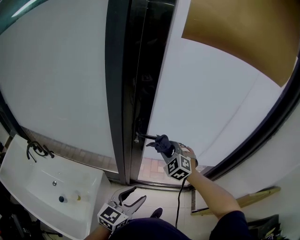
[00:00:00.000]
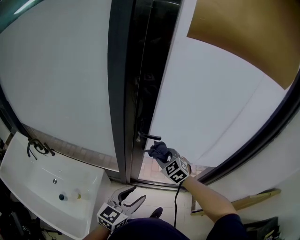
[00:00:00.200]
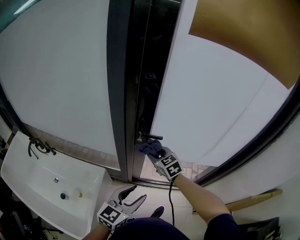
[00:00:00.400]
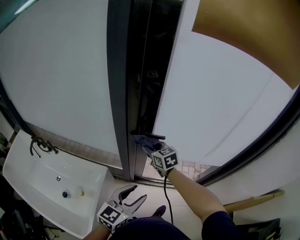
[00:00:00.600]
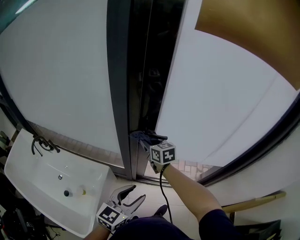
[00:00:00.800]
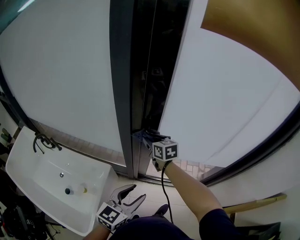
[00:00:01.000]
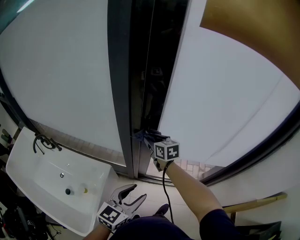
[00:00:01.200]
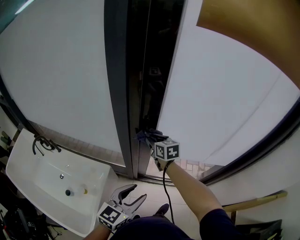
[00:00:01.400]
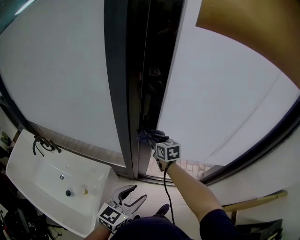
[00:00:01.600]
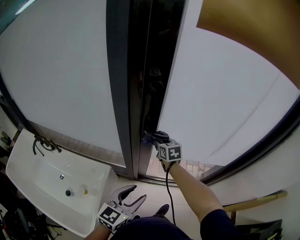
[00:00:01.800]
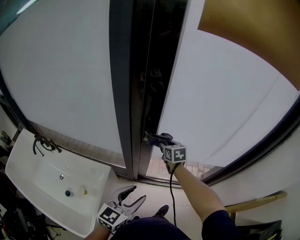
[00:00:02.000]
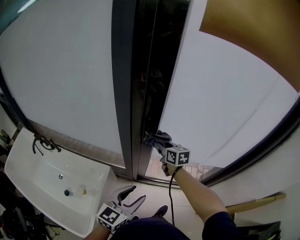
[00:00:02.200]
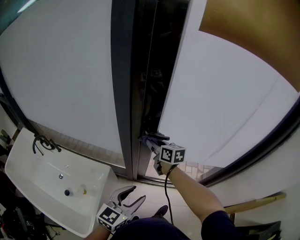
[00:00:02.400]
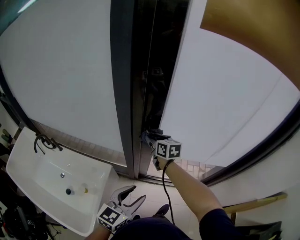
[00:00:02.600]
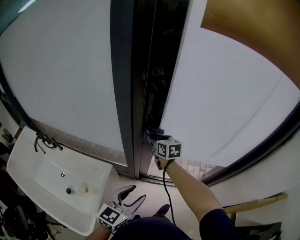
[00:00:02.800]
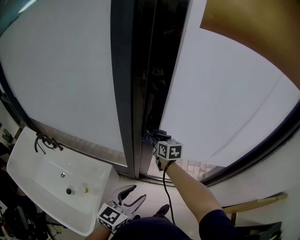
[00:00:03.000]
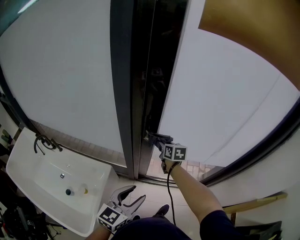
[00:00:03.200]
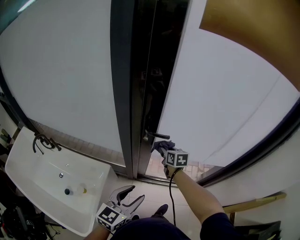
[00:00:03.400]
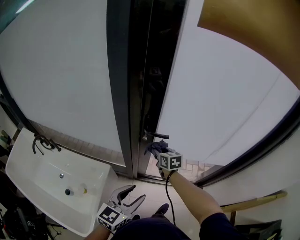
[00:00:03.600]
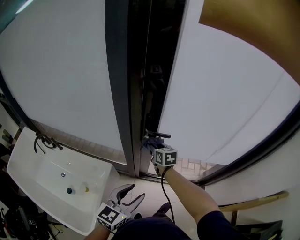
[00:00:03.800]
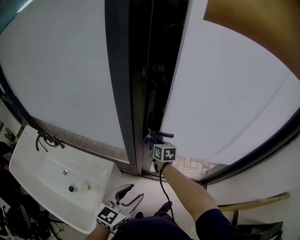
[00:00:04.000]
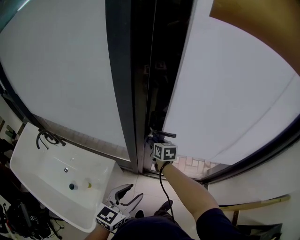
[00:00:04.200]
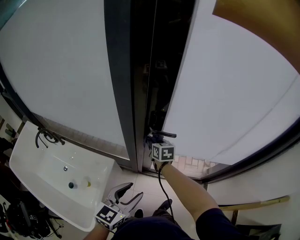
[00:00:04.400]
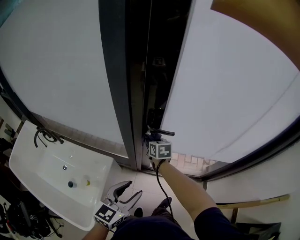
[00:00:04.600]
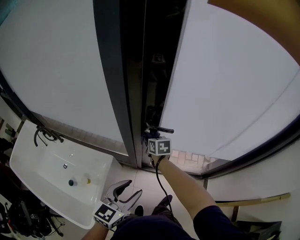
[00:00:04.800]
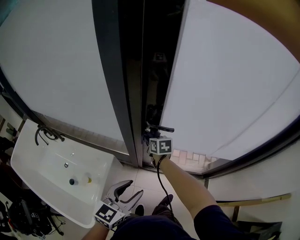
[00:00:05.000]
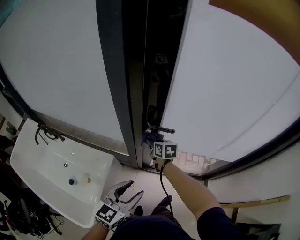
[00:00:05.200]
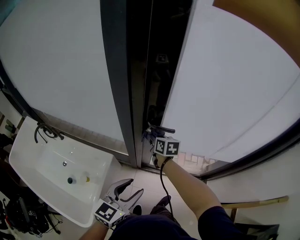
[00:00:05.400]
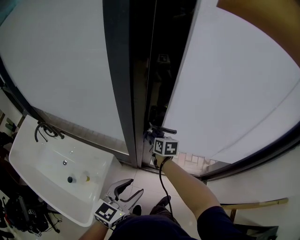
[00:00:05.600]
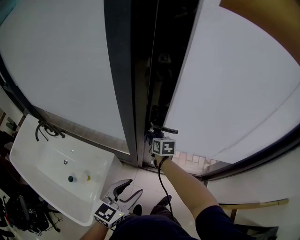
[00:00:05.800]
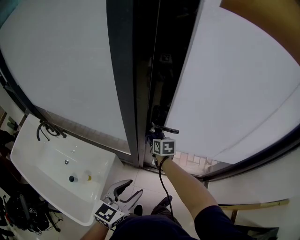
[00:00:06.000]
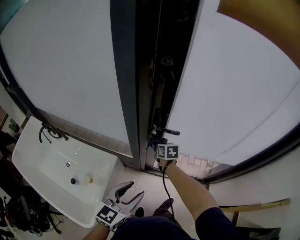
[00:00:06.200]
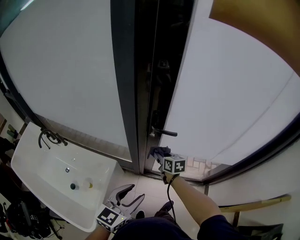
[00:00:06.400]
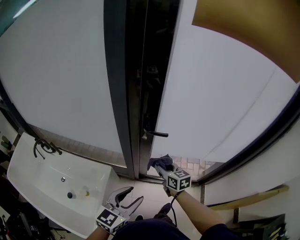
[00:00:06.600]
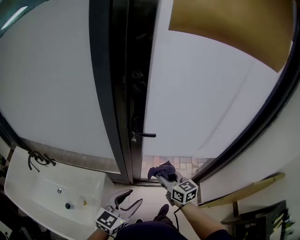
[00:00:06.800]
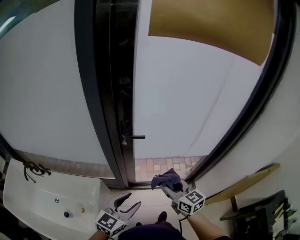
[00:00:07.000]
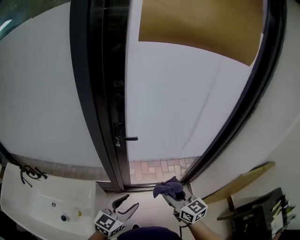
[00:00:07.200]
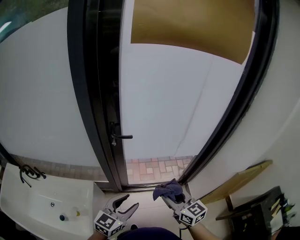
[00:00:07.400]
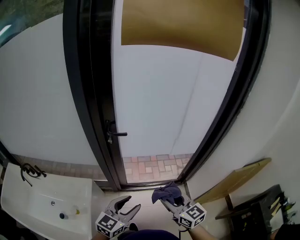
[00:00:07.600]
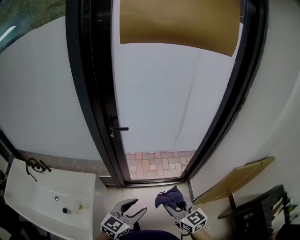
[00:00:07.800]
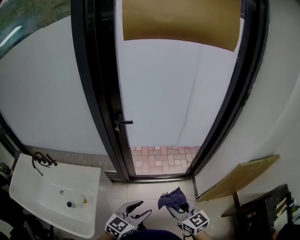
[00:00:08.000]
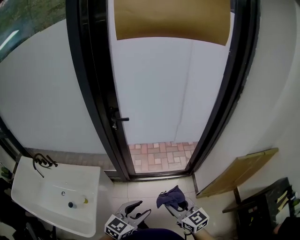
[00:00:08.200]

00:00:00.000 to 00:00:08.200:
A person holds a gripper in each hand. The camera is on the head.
00:00:00.000 to 00:00:01.600: The right gripper heads forward, to the left and downward, covering some 15 cm, and twists approximately 60 degrees clockwise, seen from behind.
00:00:01.600 to 00:00:03.200: The right gripper swings left and right, approximately 10 cm each way, with 2 reversals.
00:00:03.200 to 00:00:05.000: The right gripper goes some 10 cm to the left and downward.
00:00:05.000 to 00:00:06.600: The right gripper moves backward, to the right and upward, roughly 15 cm.
00:00:06.600 to 00:00:08.200: The two grippers go some 35 cm backward and to the right.

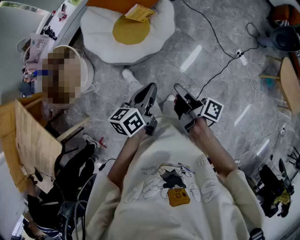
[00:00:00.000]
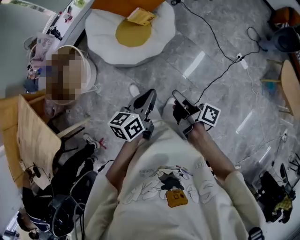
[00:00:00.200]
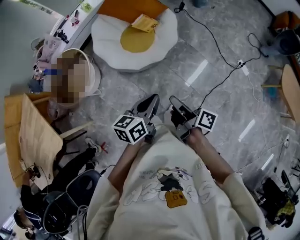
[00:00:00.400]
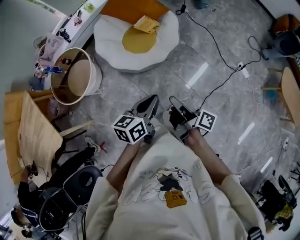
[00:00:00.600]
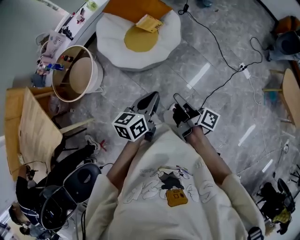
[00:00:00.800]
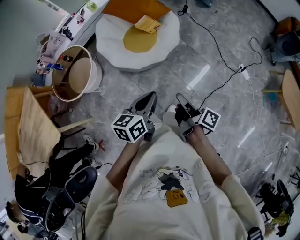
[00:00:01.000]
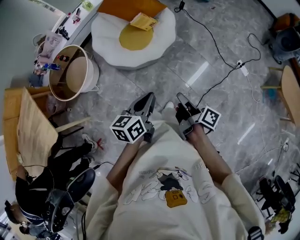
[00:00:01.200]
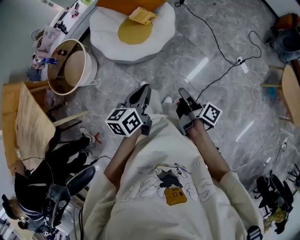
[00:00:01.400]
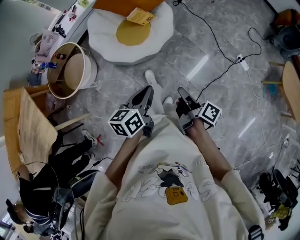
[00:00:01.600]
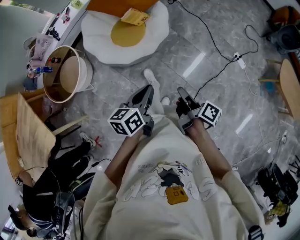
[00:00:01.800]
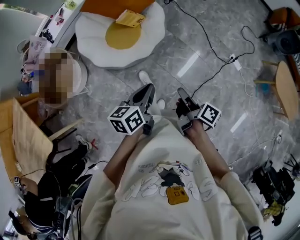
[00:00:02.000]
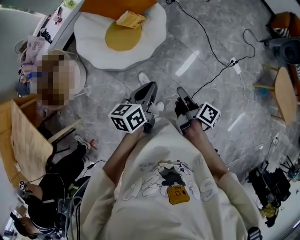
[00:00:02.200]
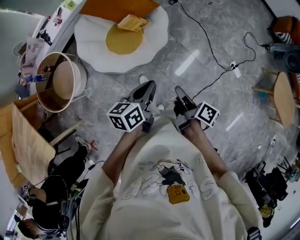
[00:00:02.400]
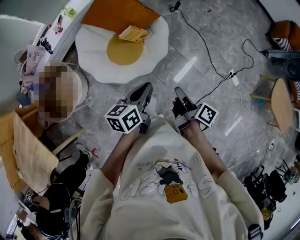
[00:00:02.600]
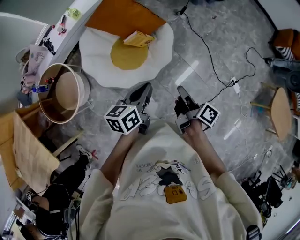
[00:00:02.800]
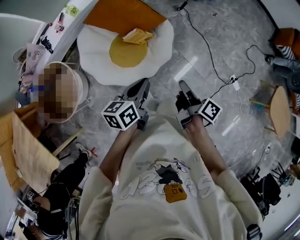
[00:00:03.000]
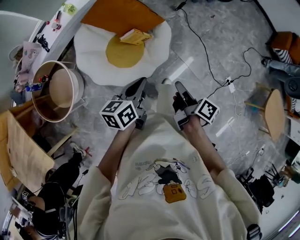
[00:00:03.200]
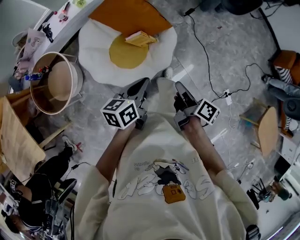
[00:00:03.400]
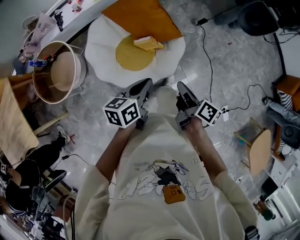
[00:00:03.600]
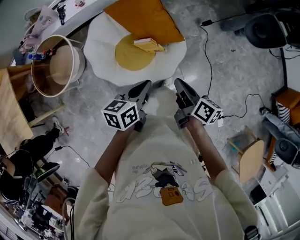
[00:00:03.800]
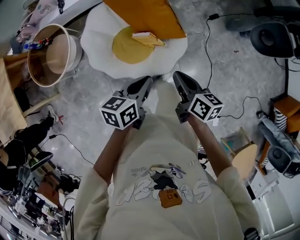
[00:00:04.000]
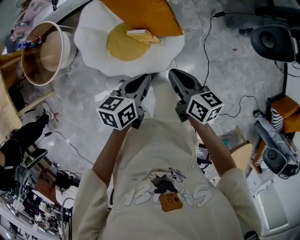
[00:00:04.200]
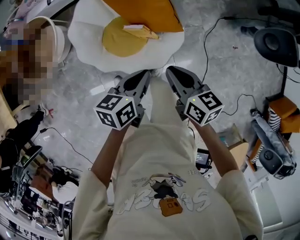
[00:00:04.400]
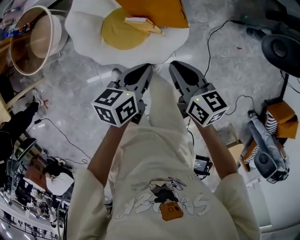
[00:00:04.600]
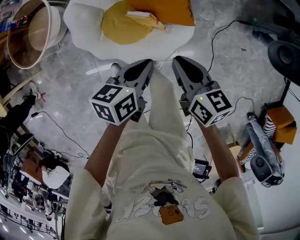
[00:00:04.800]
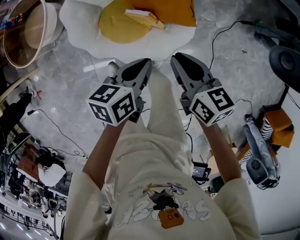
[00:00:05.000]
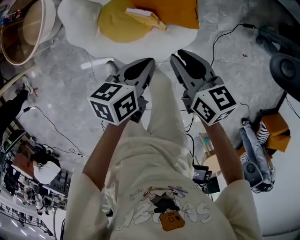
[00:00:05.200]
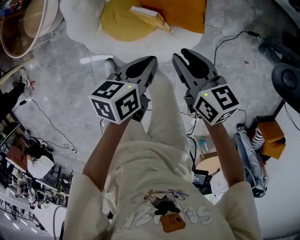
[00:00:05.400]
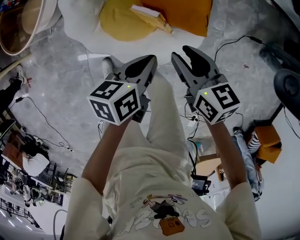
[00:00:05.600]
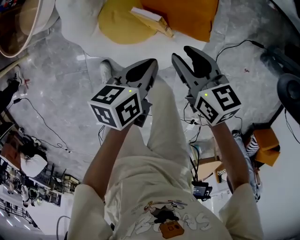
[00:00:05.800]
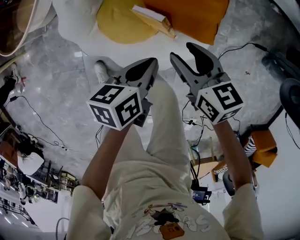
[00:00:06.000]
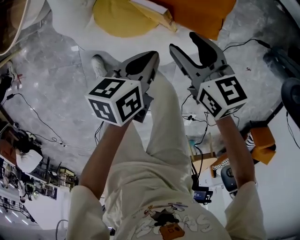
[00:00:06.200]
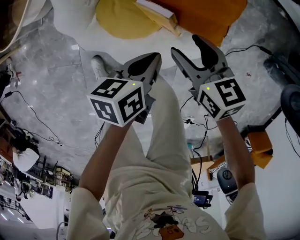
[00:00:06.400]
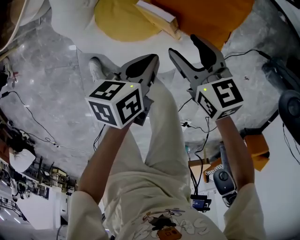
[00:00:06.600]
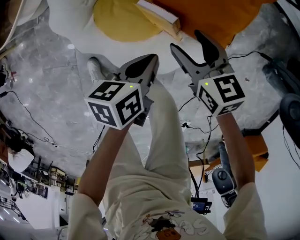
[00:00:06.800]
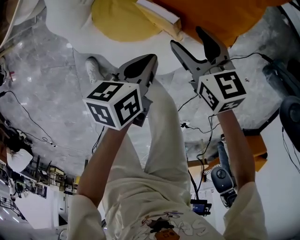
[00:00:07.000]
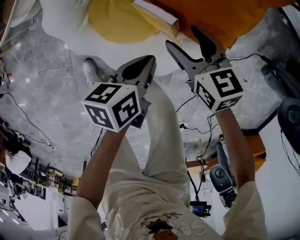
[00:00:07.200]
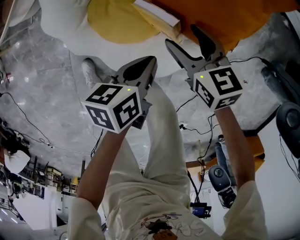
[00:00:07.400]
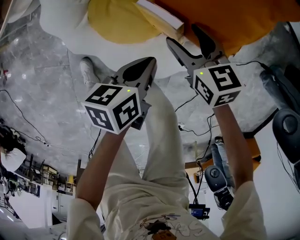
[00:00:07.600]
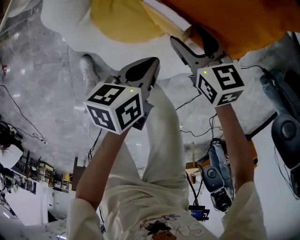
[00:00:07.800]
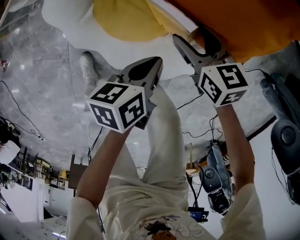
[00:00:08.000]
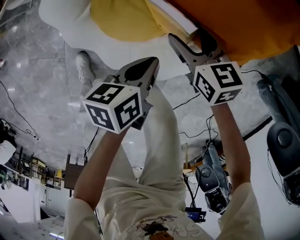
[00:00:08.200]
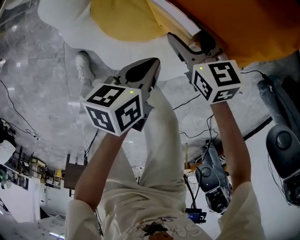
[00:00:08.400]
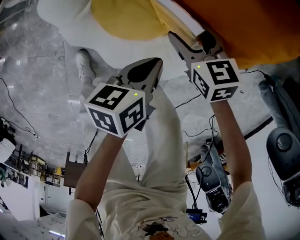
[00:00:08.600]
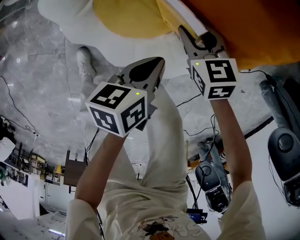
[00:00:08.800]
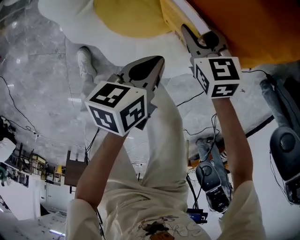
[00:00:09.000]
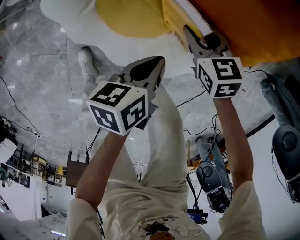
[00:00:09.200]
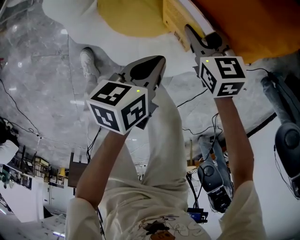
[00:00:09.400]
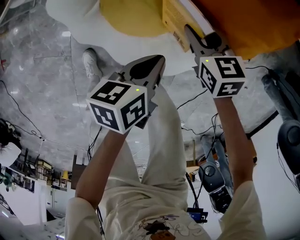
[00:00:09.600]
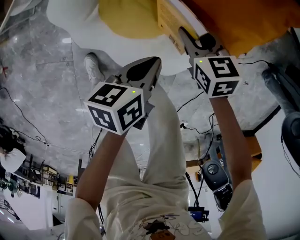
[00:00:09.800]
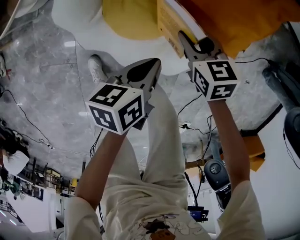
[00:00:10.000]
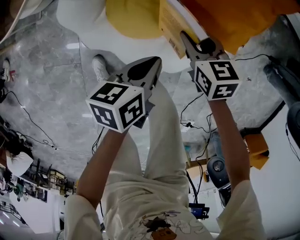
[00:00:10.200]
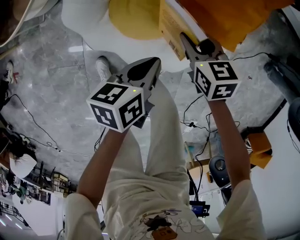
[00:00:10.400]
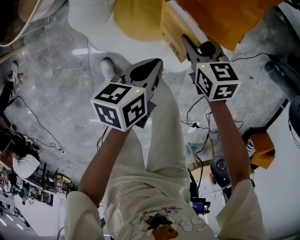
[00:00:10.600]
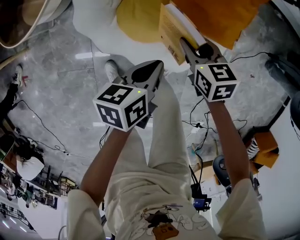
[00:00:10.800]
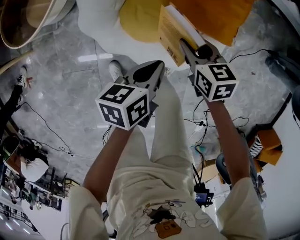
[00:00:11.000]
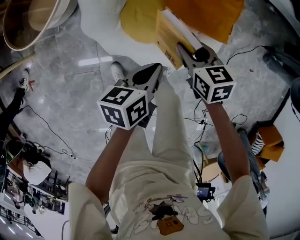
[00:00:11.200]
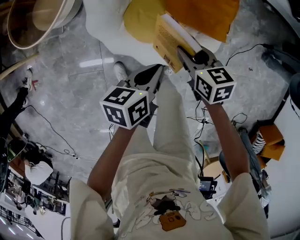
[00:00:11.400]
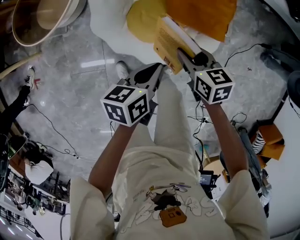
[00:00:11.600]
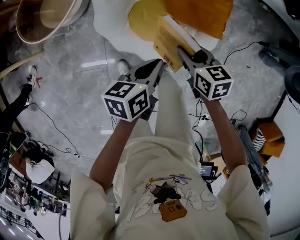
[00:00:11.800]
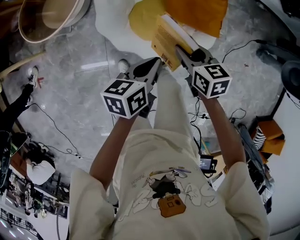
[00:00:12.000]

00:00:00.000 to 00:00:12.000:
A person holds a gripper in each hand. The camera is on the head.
00:00:00.000 to 00:00:01.600: The right gripper is displaced to the right and backward by roughly 15 cm. Meanwhile the left gripper moves backward and to the right, approximately 10 cm.
00:00:01.600 to 00:00:03.000: Both grippers move forward, roughly 35 cm.
00:00:03.000 to 00:00:04.400: The left gripper changes place by roughly 25 cm, and rotates about 20 degrees, while the right gripper changes place by roughly 30 cm, and turns by approximately 70 degrees.
00:00:04.400 to 00:00:06.000: The right gripper shifts about 30 cm downward and forward, changes its angle by some 30 degrees, and opens up; the left gripper shifts some 25 cm downward, and changes its angle by approximately 20 degrees.
00:00:06.000 to 00:00:07.600: Both grippers travel together downward, about 15 cm.
00:00:07.600 to 00:00:09.000: The left gripper moves about 5 cm. The right gripper goes some 10 cm downward, and closes its fingers.
00:00:09.000 to 00:00:10.400: The left gripper moves upward and to the left, roughly 15 cm, while the right gripper heads upward and backward, covering approximately 15 cm.
00:00:10.400 to 00:00:12.000: The two grippers go about 25 cm upward and to the left.

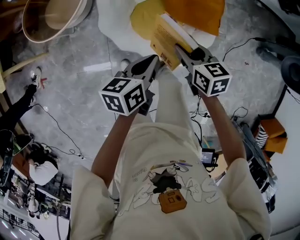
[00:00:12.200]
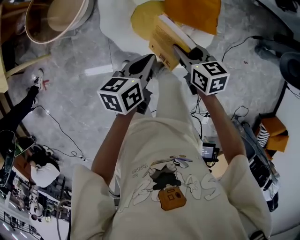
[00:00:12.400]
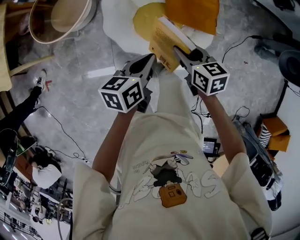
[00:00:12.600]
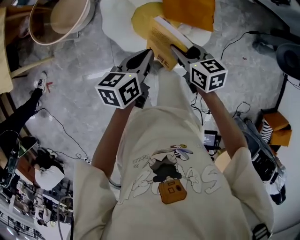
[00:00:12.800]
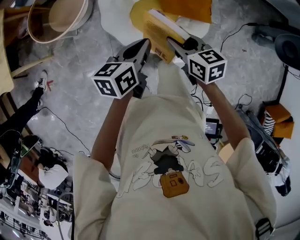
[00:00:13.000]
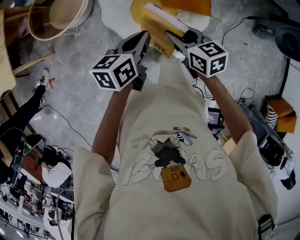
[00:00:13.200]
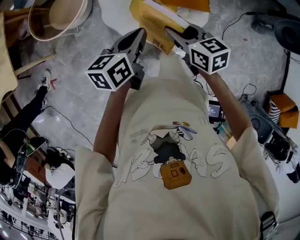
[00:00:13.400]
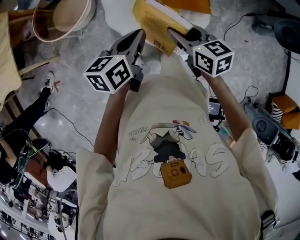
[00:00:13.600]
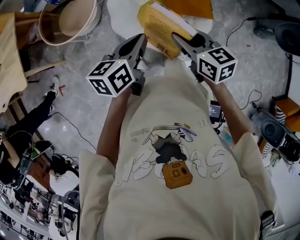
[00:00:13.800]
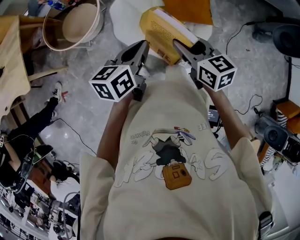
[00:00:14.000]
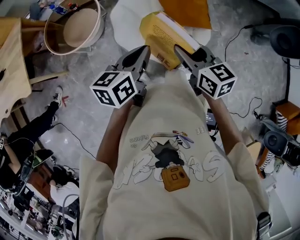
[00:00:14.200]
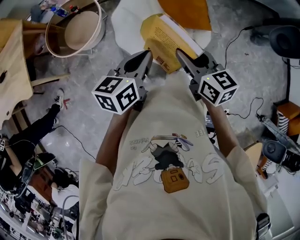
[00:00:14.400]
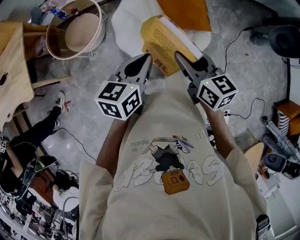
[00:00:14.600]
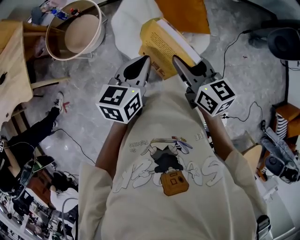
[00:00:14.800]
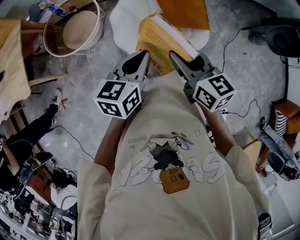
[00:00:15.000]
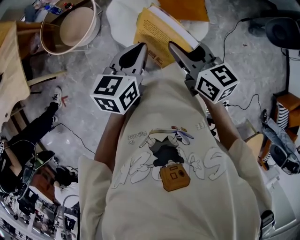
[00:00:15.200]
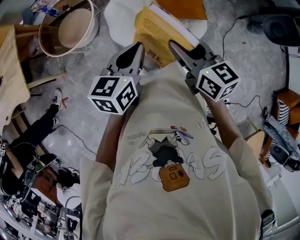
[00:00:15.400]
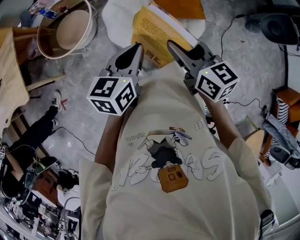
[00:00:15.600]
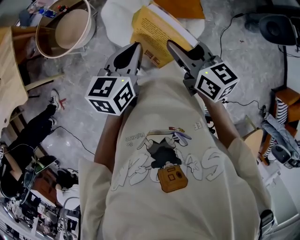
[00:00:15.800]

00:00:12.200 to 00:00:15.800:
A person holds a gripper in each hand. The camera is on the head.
00:00:12.200 to 00:00:14.000: The right gripper is displaced upward, backward and to the left by about 25 cm. Meanwhile the left gripper heads upward, to the left and backward, covering roughly 20 cm.
00:00:14.000 to 00:00:15.800: The right gripper shifts by about 5 cm.
